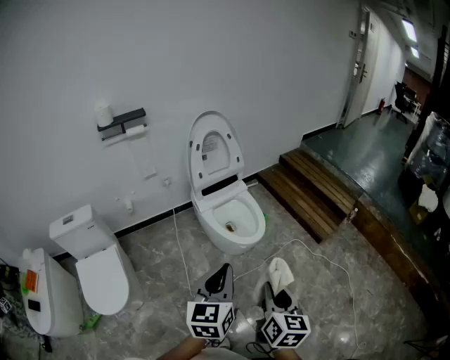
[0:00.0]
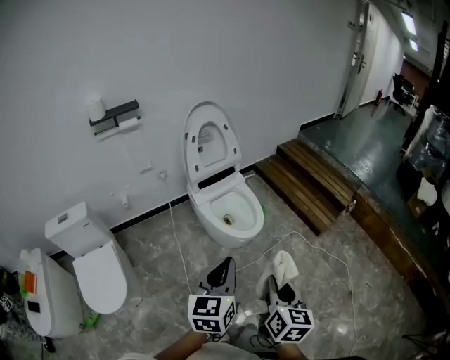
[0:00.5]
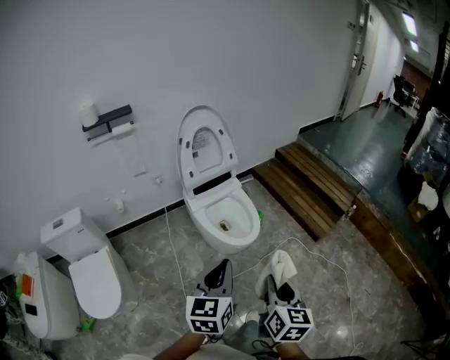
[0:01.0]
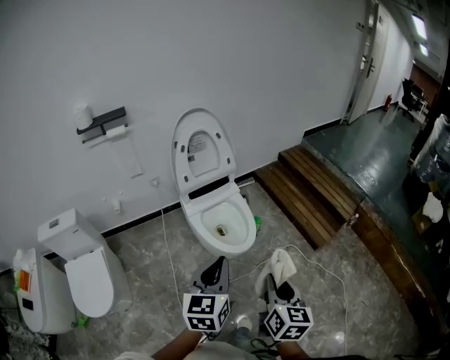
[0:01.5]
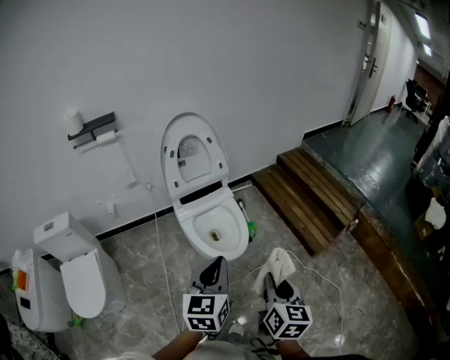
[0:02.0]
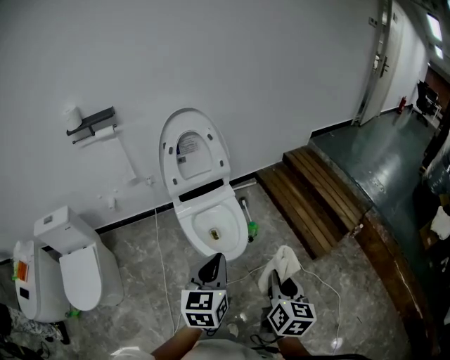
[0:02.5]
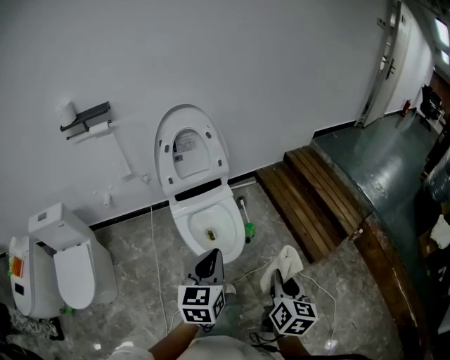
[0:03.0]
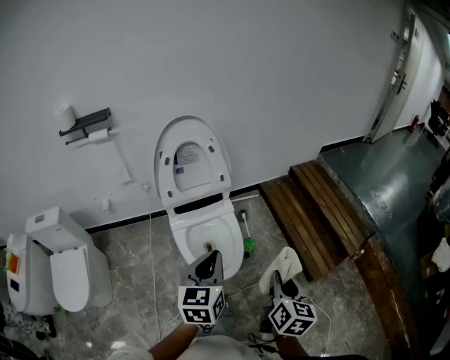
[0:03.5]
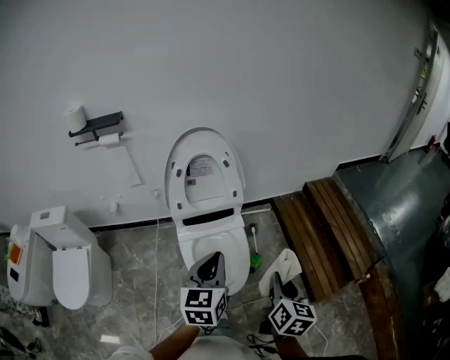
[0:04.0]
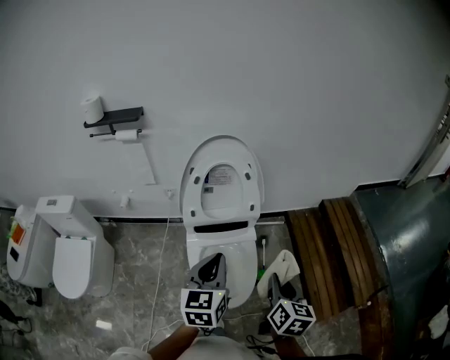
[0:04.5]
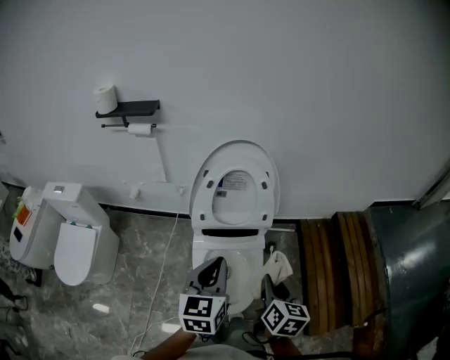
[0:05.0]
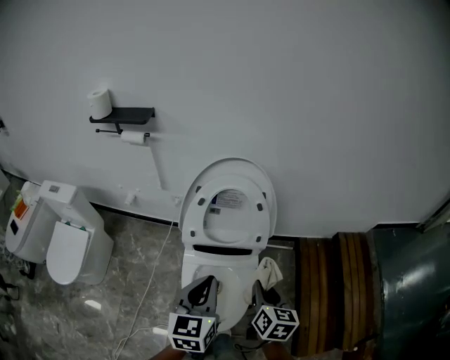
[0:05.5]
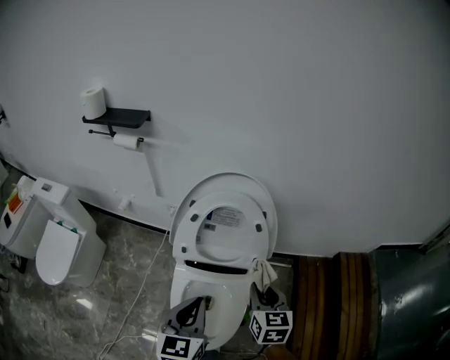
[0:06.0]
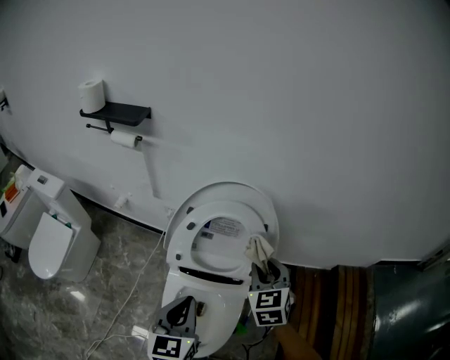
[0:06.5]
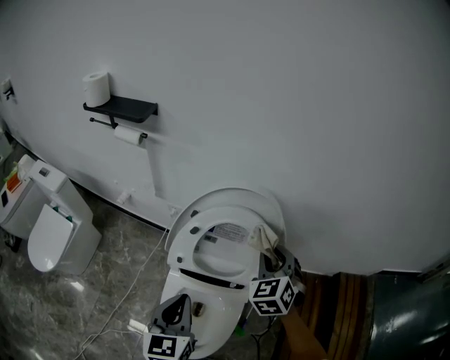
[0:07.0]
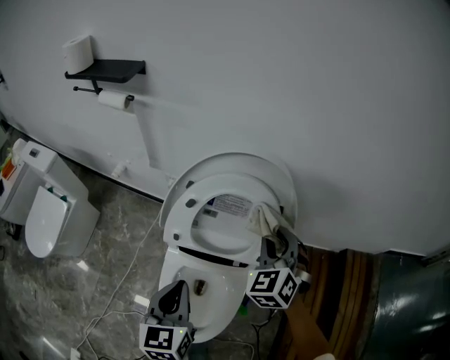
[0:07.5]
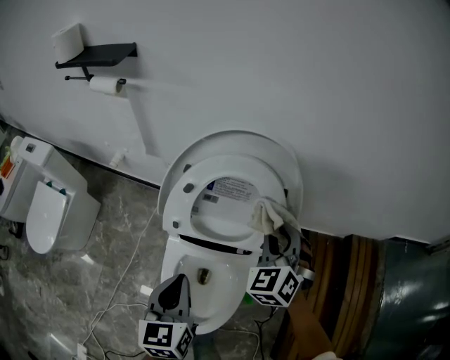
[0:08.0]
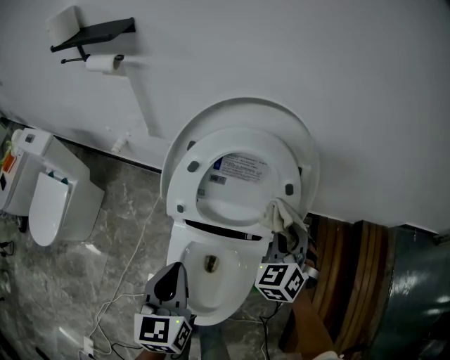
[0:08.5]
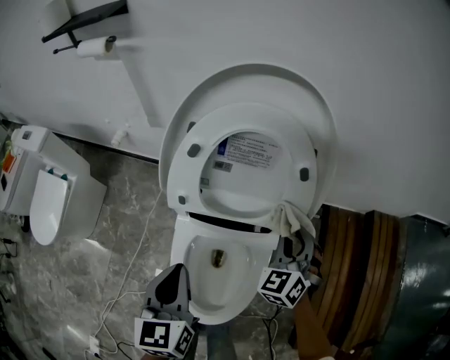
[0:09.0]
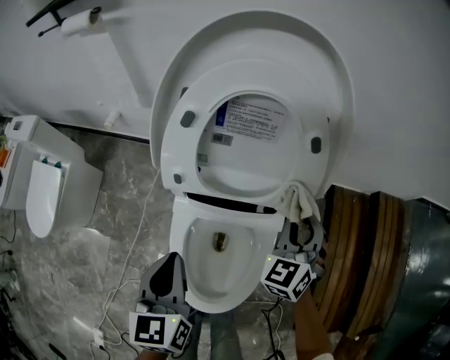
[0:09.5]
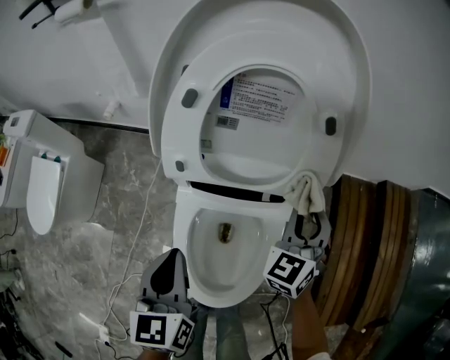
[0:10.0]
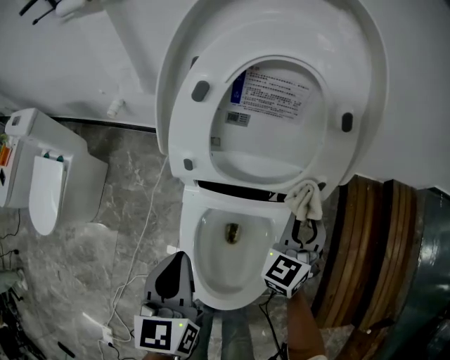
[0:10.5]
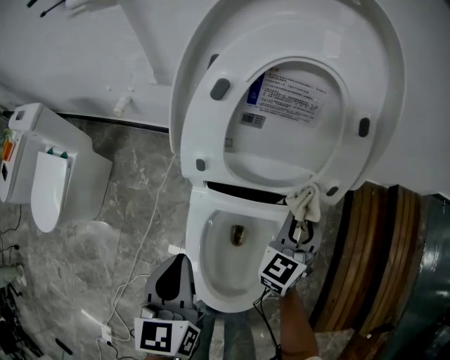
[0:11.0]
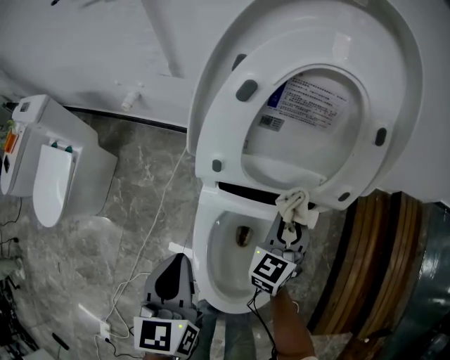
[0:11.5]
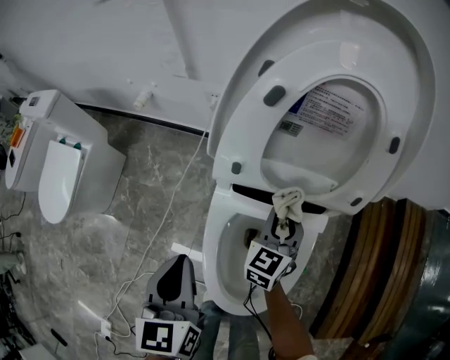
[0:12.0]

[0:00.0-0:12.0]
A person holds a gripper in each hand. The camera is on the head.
0:00.0 to 0:02.0: The two grippers go about 25 cm forward and to the right.
0:02.0 to 0:04.0: The two grippers go approximately 25 cm forward.
0:04.0 to 0:06.0: The right gripper heads forward, covering approximately 35 cm, and swivels some 40 degrees, while the left gripper is displaced forward by some 15 cm, and rotates about 20 degrees.
0:06.0 to 0:08.0: The left gripper goes approximately 10 cm downward and forward; the right gripper goes some 15 cm forward, and rotates around the line of its fingers by about 50 degrees, counterclockwise from behind.
0:08.0 to 0:10.0: The left gripper moves downward, approximately 10 cm. Meanwhile the right gripper is displaced downward and backward by about 15 cm, and turns by roughly 20 degrees.
0:10.0 to 0:12.0: The right gripper shifts some 20 cm to the left and downward. The left gripper is displaced to the left by about 10 cm.

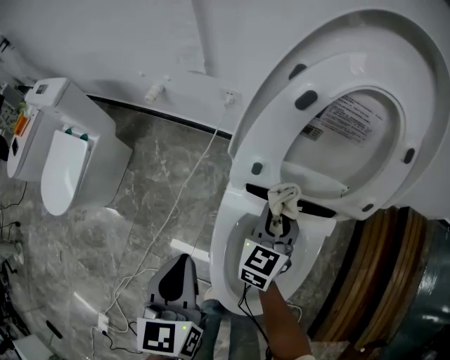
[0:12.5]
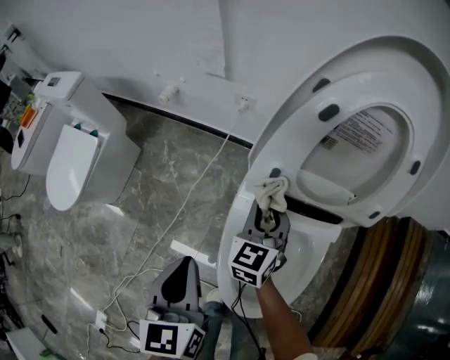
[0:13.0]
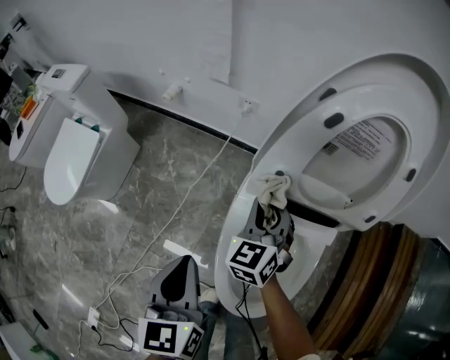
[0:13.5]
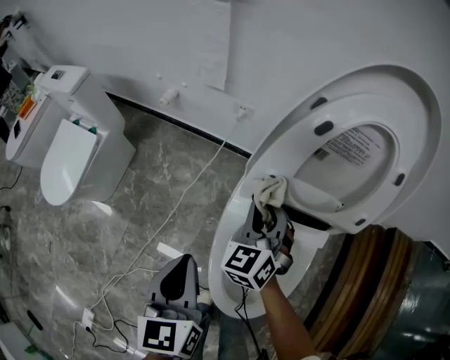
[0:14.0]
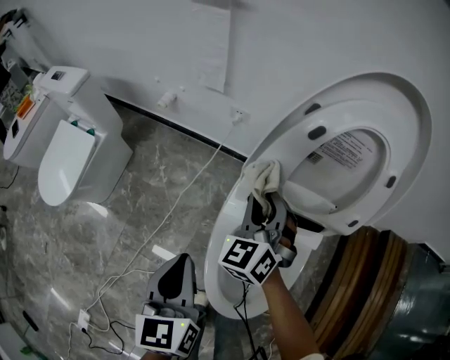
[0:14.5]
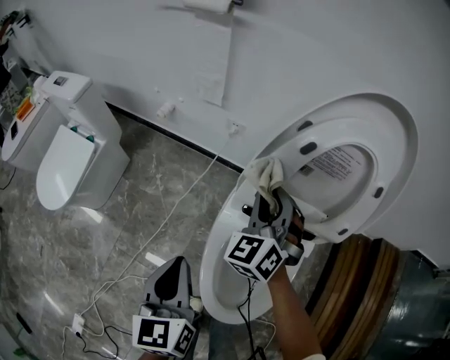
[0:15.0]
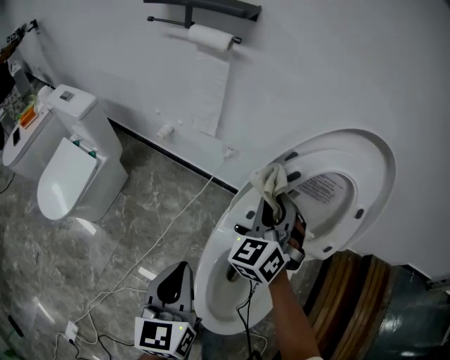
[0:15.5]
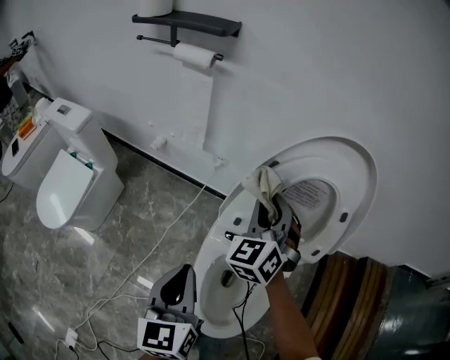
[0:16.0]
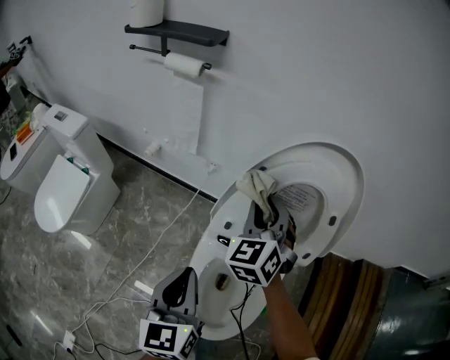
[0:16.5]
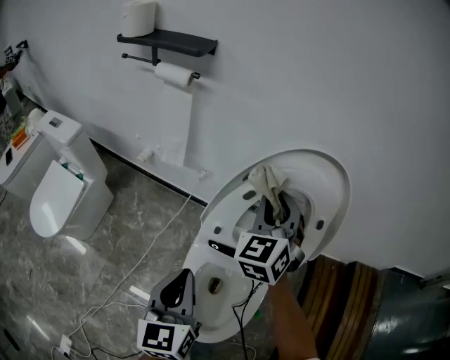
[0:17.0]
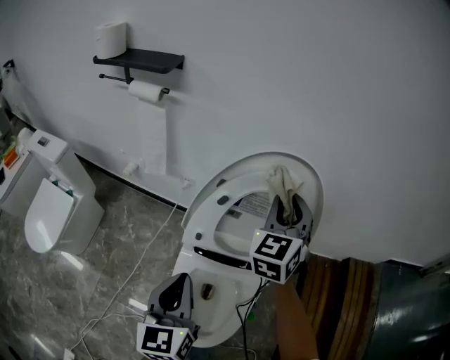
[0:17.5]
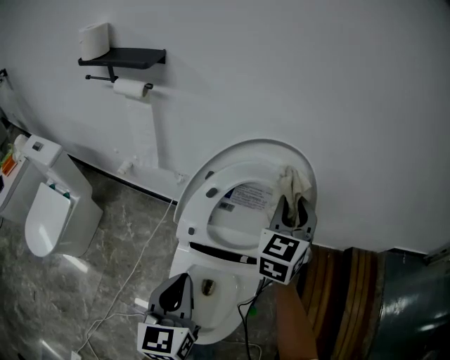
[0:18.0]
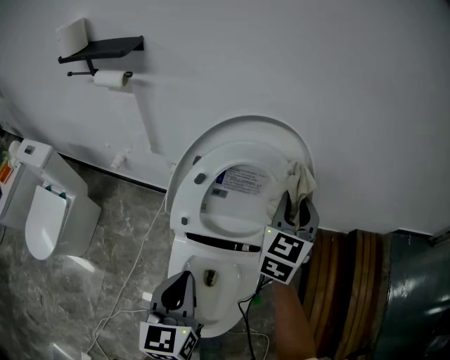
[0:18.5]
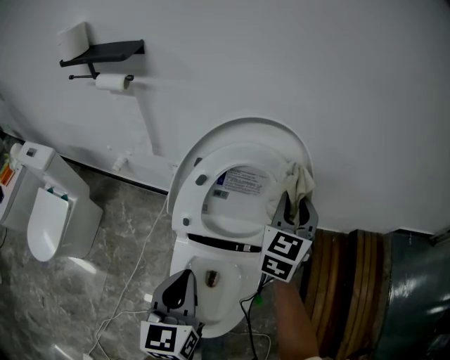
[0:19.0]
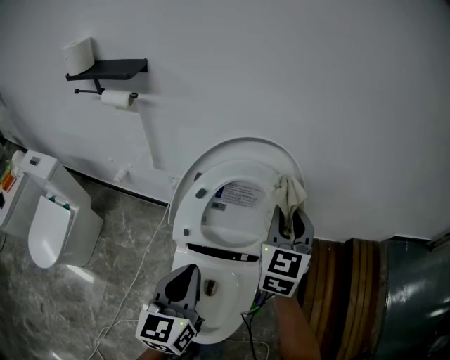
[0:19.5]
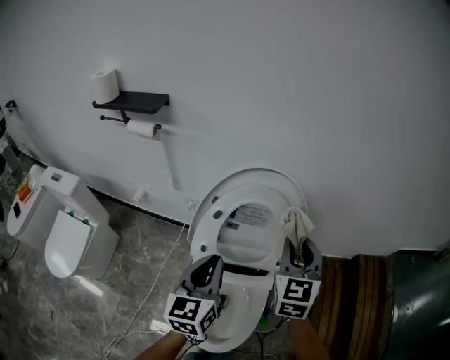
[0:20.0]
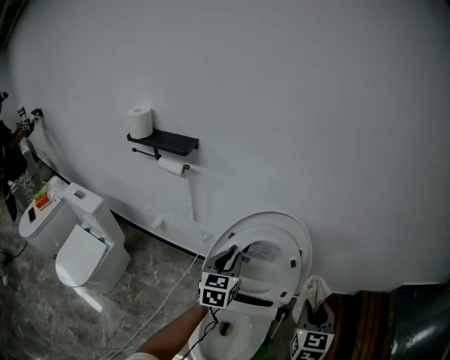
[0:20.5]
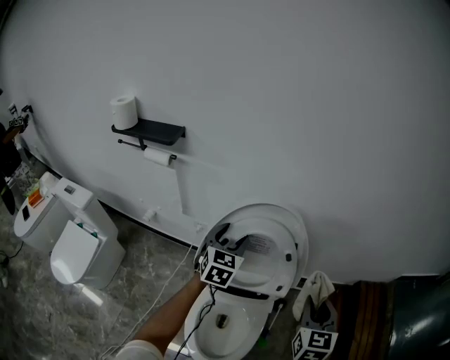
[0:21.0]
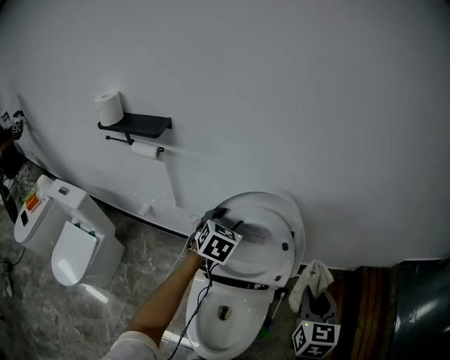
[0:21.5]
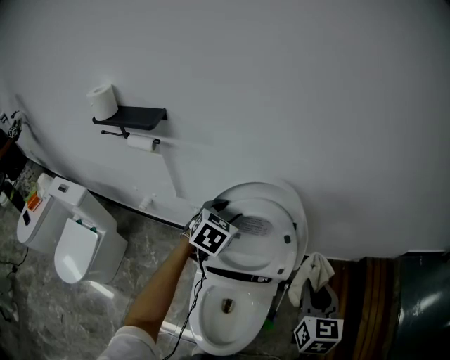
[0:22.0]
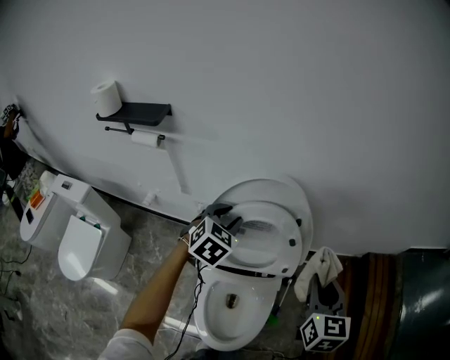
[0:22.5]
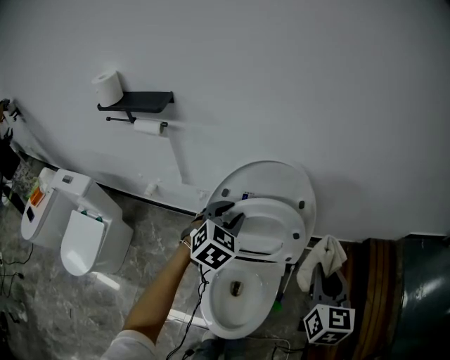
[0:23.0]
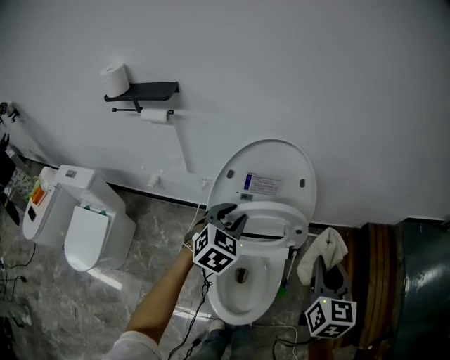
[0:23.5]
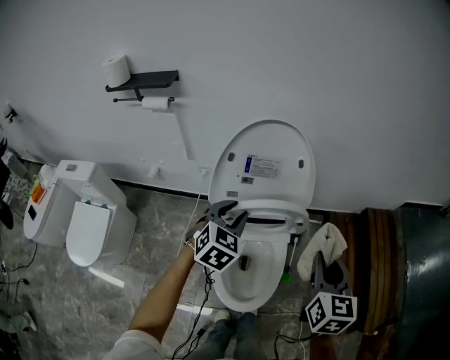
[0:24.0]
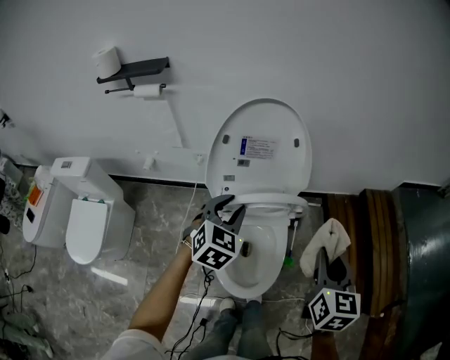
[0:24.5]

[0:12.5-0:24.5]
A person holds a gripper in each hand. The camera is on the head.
0:12.5 to 0:14.5: The right gripper shifts about 15 cm upward and to the left, and rotates some 30 degrees.
0:14.5 to 0:16.5: The right gripper is displaced upward and forward by about 15 cm. Meanwhile the left gripper shifts approximately 10 cm upward and to the right.
0:16.5 to 0:18.5: The left gripper is displaced to the right by roughly 10 cm, while the right gripper heads to the right, covering approximately 20 cm, and swivels some 30 degrees.
0:18.5 to 0:20.5: The left gripper shifts some 20 cm forward and upward. Meanwhile the right gripper moves backward and to the right, some 15 cm.
0:20.5 to 0:22.5: The left gripper is displaced forward by approximately 5 cm, turns by approximately 40 degrees, and opens up.
0:22.5 to 0:24.5: Both grippers travel together backward, roughly 20 cm.

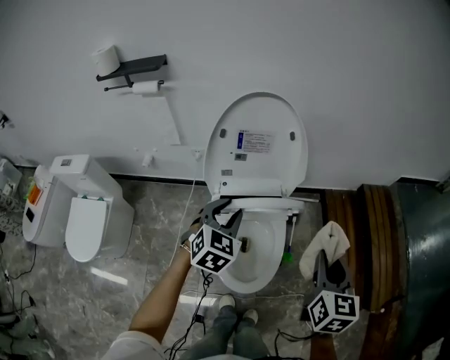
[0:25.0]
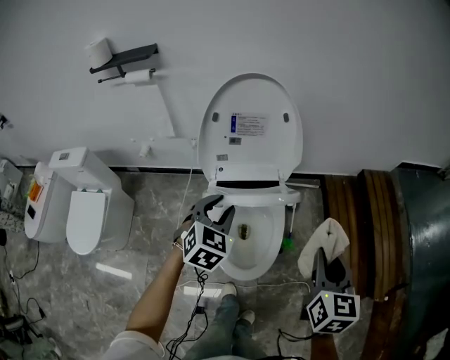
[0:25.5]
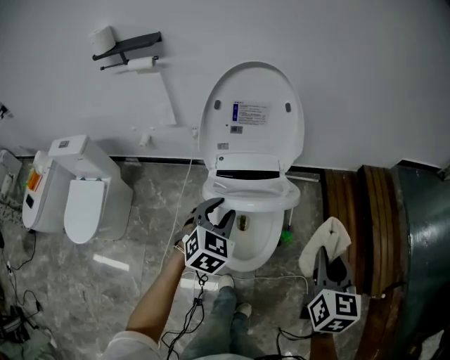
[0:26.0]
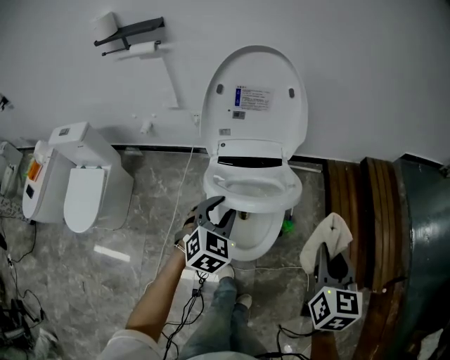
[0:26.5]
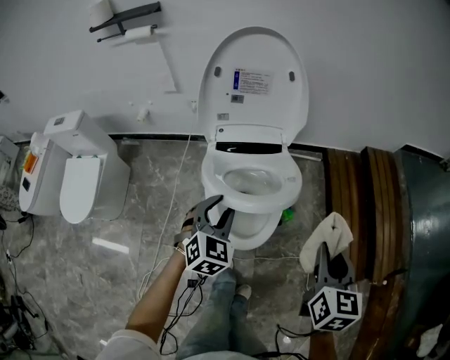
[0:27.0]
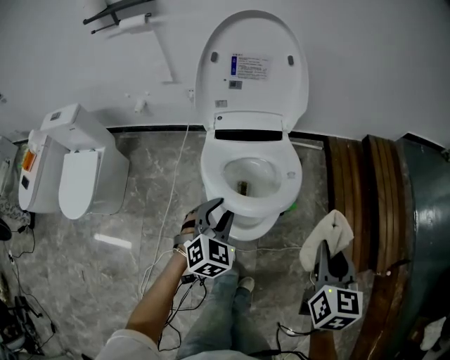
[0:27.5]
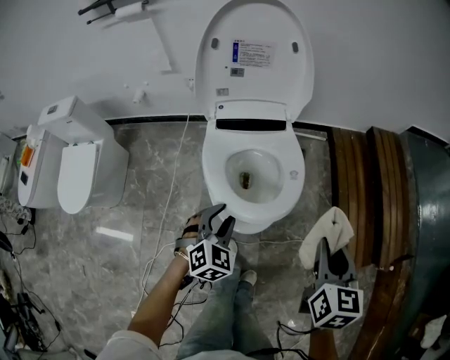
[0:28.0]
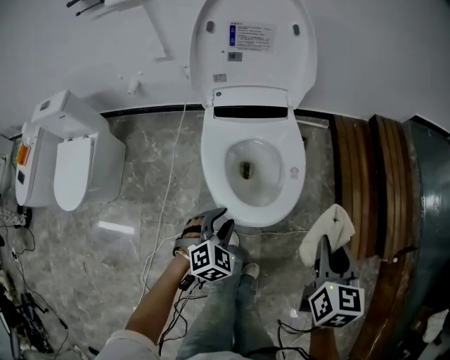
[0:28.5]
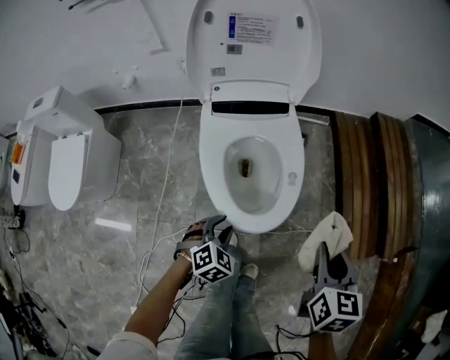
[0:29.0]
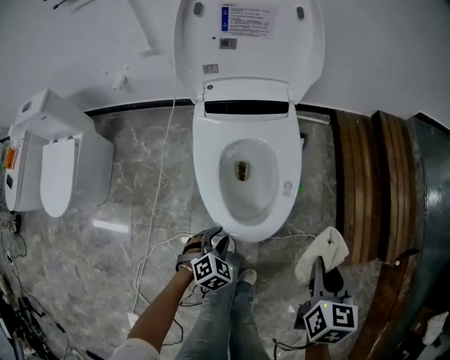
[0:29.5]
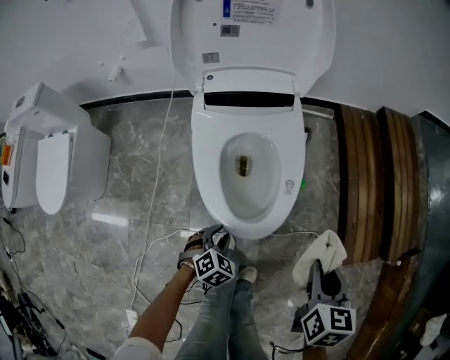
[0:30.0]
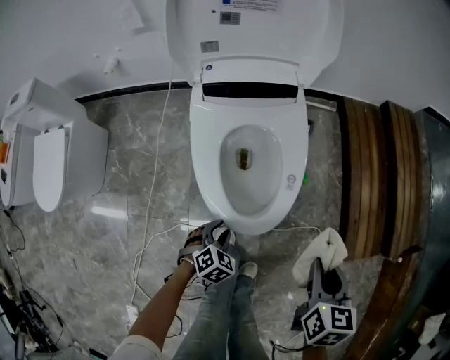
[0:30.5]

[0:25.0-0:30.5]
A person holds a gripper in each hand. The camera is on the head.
0:25.0 to 0:27.0: Both grippers travel together backward and downward, about 15 cm.
0:27.0 to 0:28.5: The right gripper travels downward by about 10 cm. The left gripper heads downward and backward, covering about 15 cm.
0:28.5 to 0:30.5: The right gripper goes about 15 cm downward, while the left gripper travels downward by about 20 cm.
